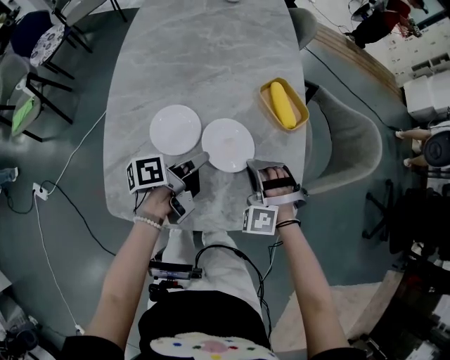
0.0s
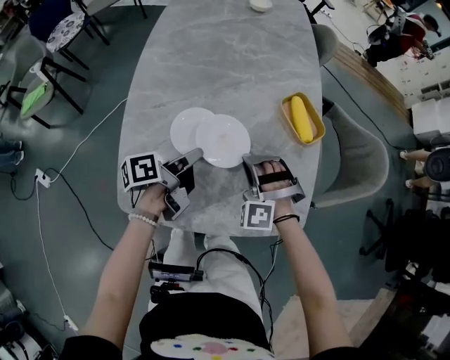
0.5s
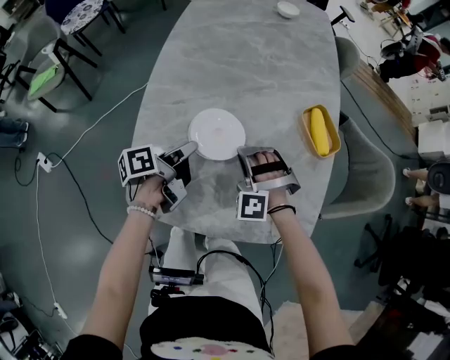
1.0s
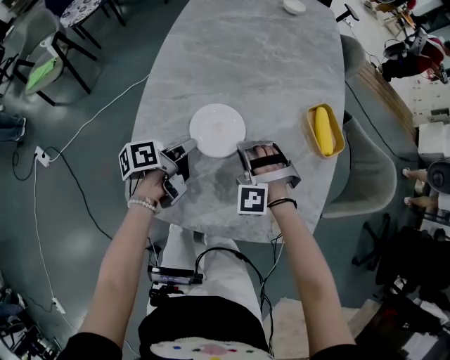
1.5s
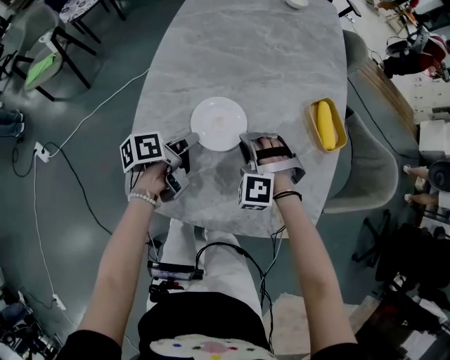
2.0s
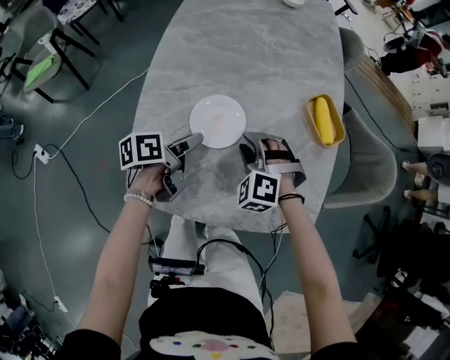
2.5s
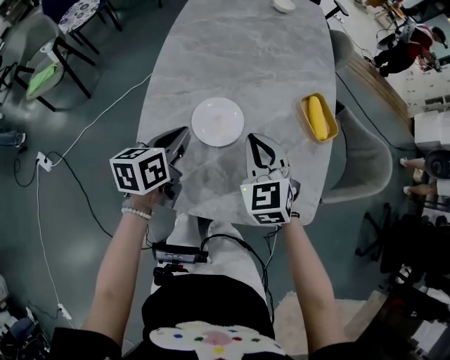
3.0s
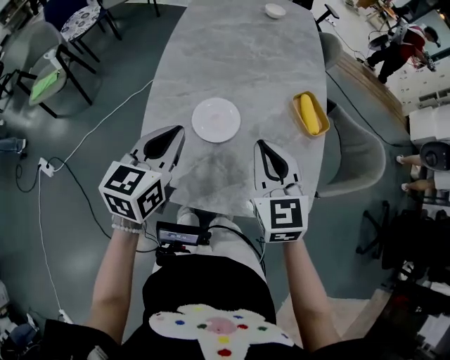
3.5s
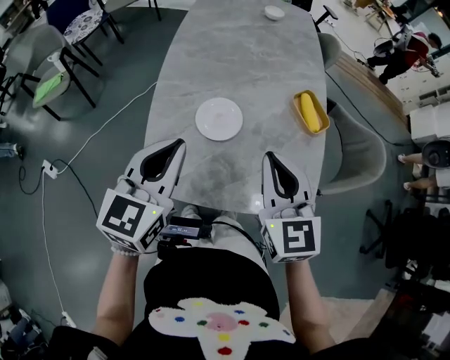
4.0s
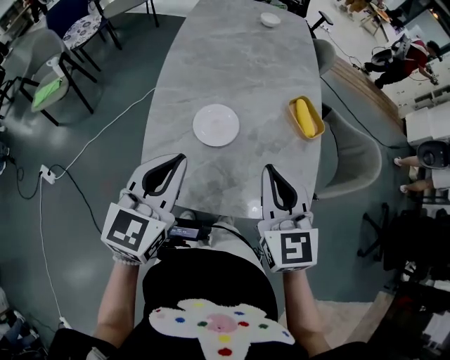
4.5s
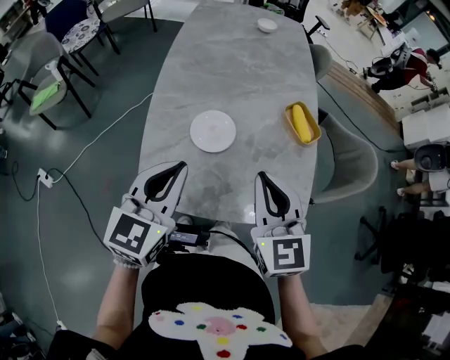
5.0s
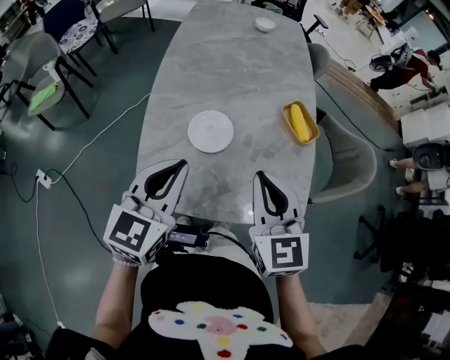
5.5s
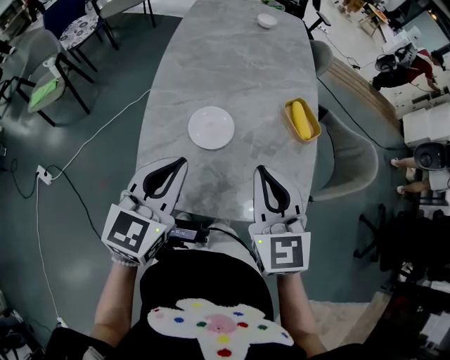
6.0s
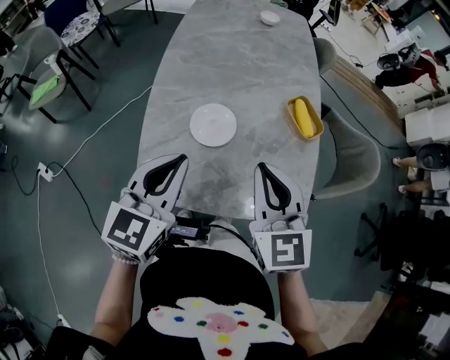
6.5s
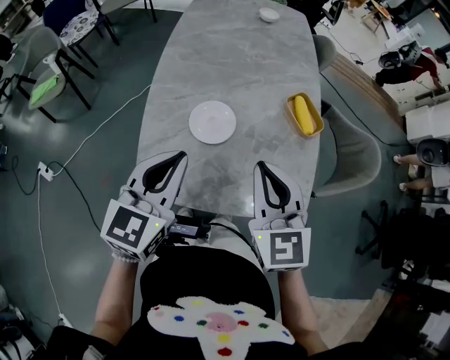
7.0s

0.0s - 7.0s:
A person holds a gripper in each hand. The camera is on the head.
0.0s - 2.0s: Both grippers move to the left, about 15 cm.
2.0s - 3.5s: Both grippers travel together upward, roughly 20 cm. The right gripper twists approximately 70 degrees clockwise, seen from behind, and closes its fingers. Meanwhile the left gripper twists about 60 degrees clockwise, seen from behind, and opens, then closes once more.
3.5s - 5.0s: The grippers both shift backward and upward by roughly 10 cm.
5.0s - 7.0s: There are only small adjustments of the grippers.

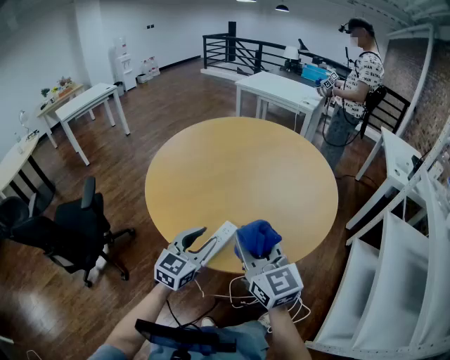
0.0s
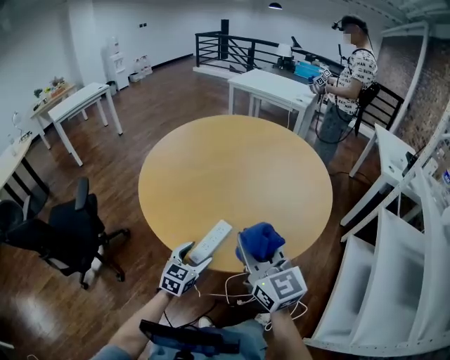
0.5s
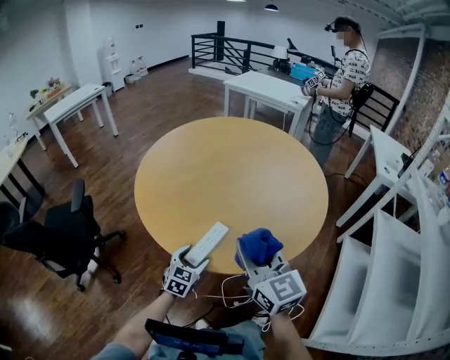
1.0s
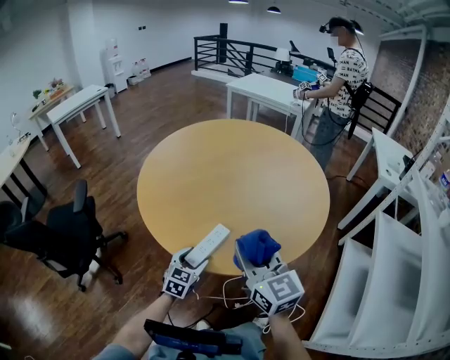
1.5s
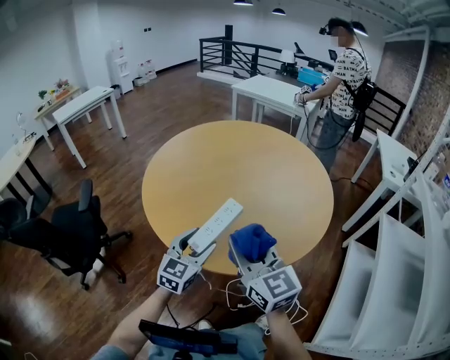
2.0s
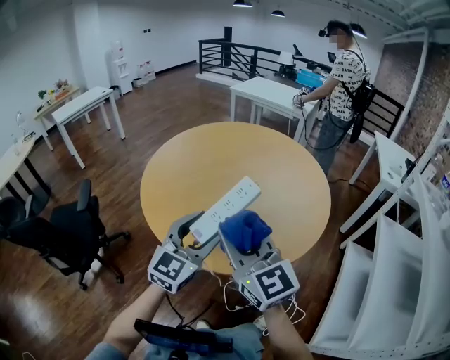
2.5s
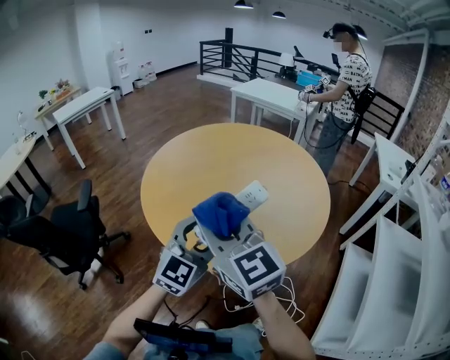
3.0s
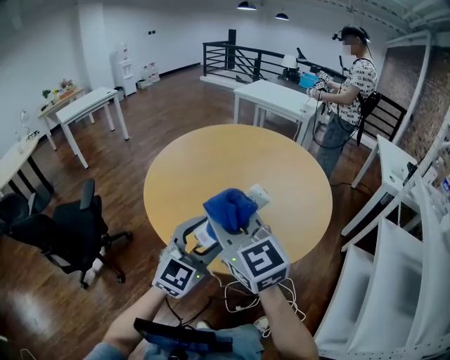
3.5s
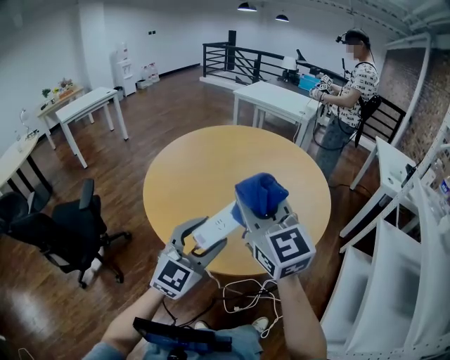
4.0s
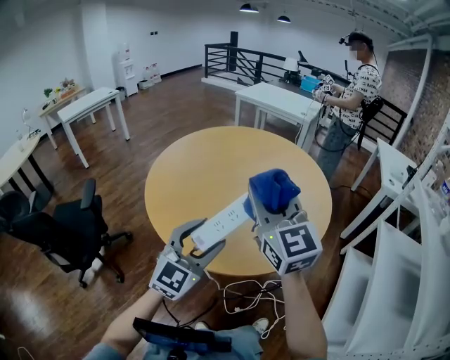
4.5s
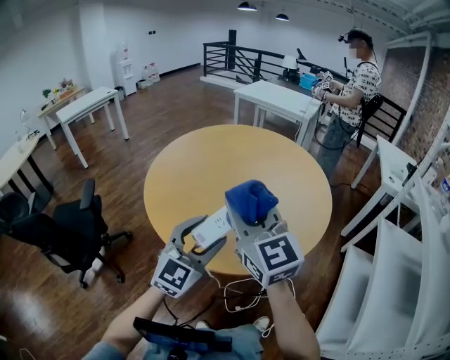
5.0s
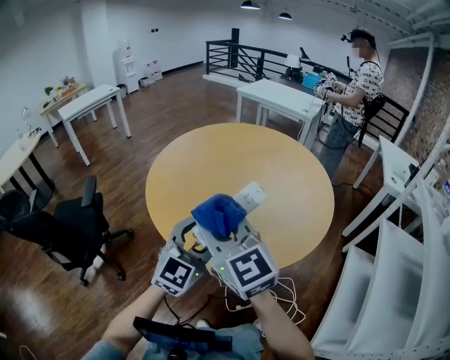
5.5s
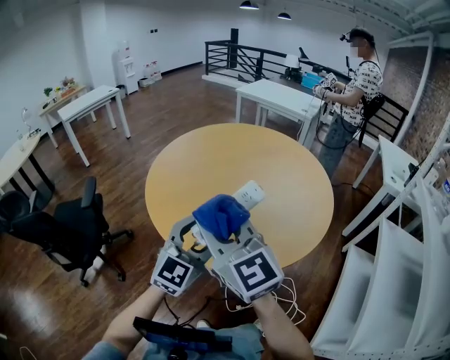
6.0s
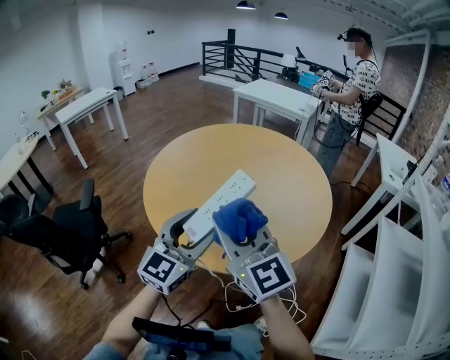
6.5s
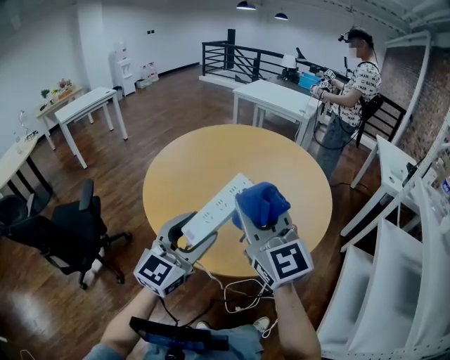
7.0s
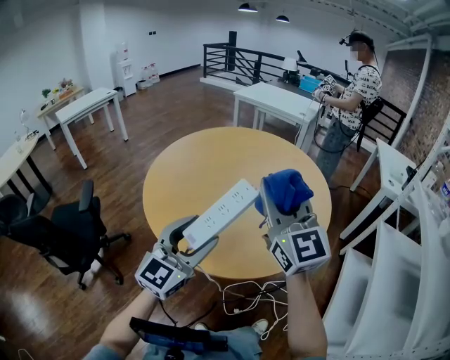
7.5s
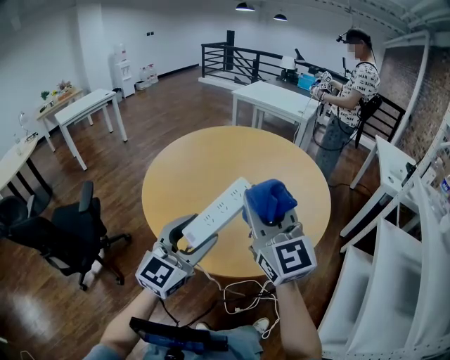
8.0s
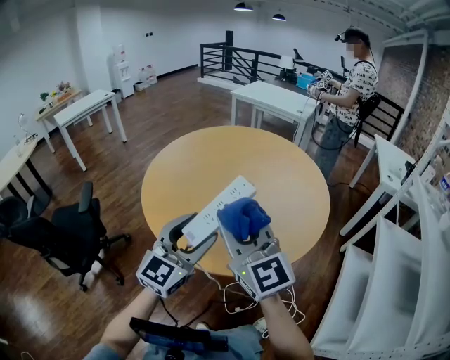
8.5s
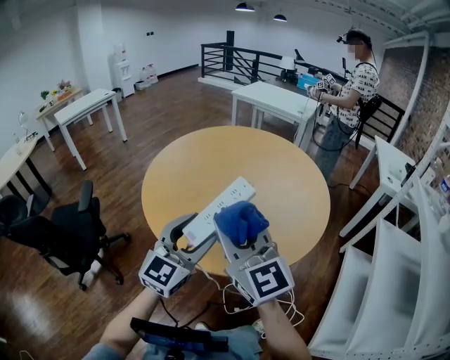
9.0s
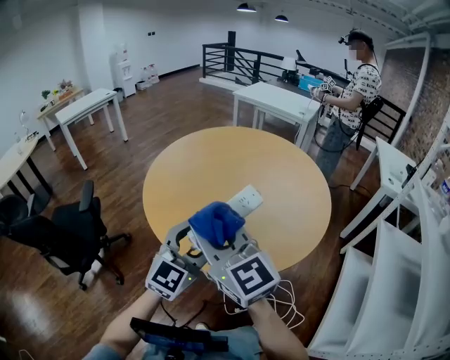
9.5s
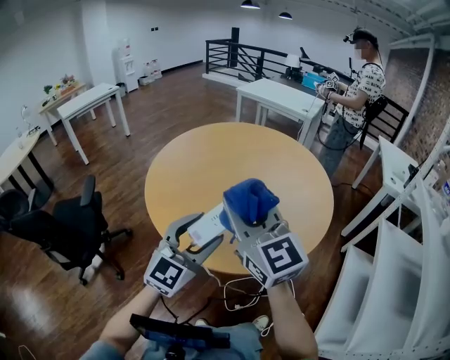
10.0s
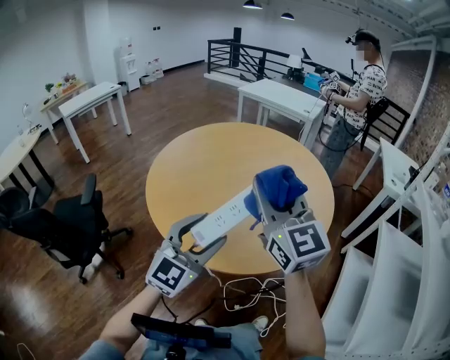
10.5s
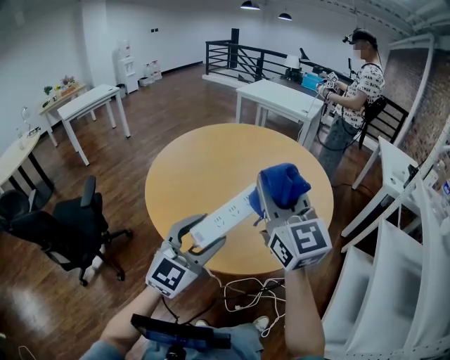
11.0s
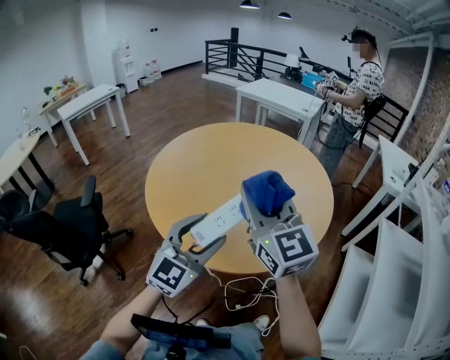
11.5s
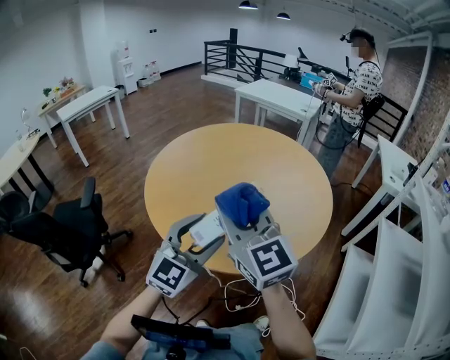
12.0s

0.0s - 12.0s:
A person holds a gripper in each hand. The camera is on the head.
0.0s - 2.0s: The left gripper travels downward and back again, approximately 15 cm each way.
2.0s - 4.0s: The grippers both shift upward by approximately 15 cm.
4.0s - 6.0s: The right gripper travels to the left and backward by approximately 10 cm.
6.0s - 8.0s: The right gripper is displaced to the right and forward by roughly 15 cm.
8.0s - 10.0s: The right gripper shifts about 5 cm to the left.
10.0s - 12.0s: The right gripper travels to the right and back again, some 5 cm each way.

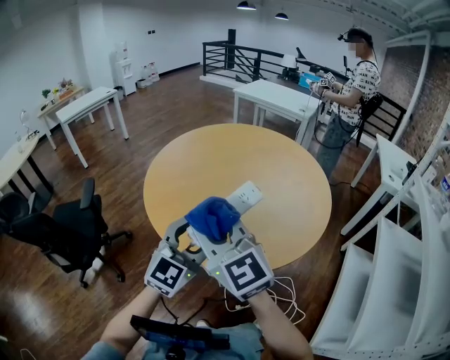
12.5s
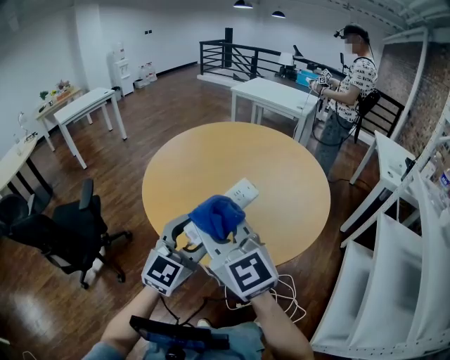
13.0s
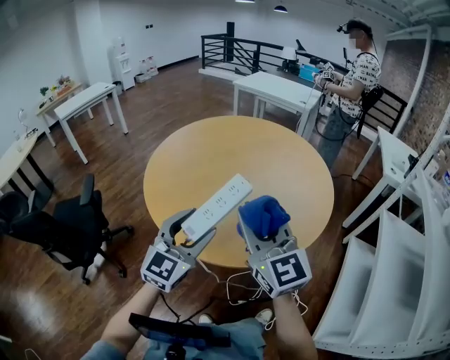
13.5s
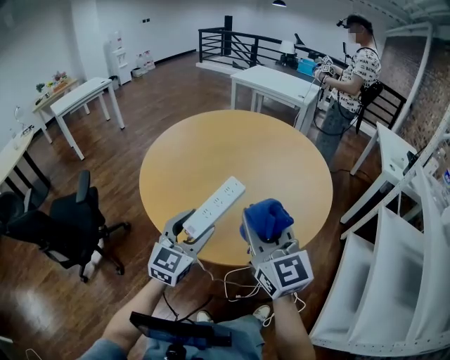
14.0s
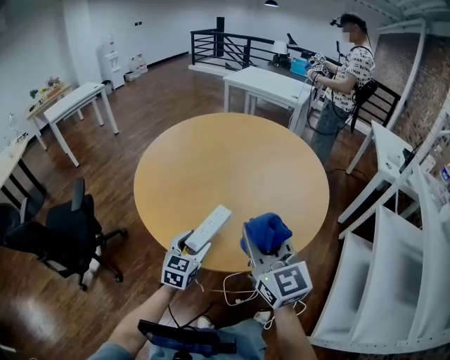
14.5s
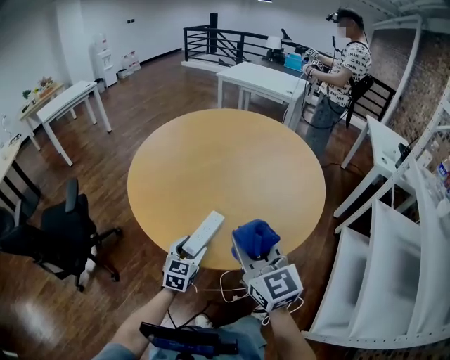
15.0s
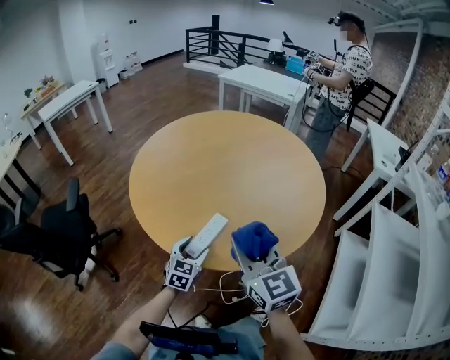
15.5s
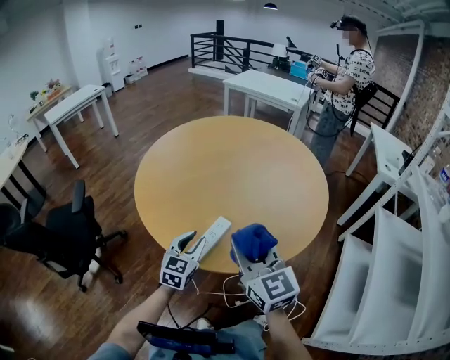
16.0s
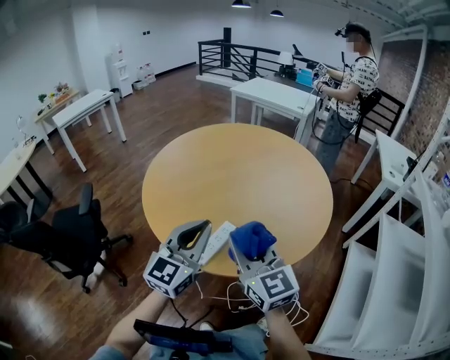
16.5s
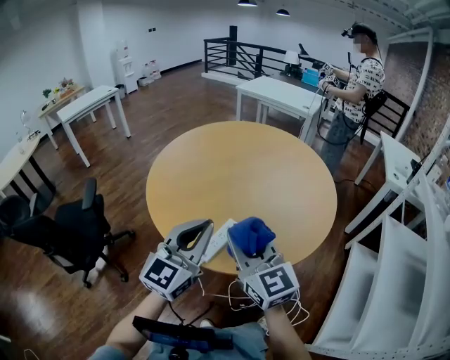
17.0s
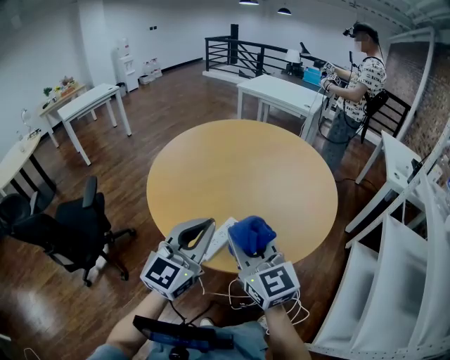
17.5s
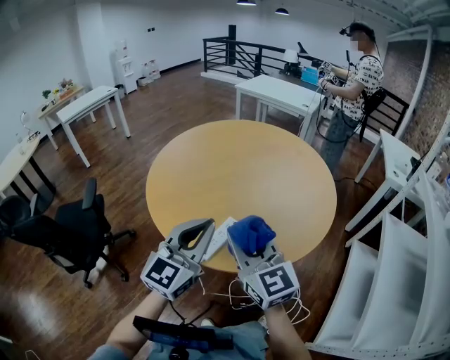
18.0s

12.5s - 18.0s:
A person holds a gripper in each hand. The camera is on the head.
12.5s - 14.5s: The left gripper heads downward, covering roughly 20 cm, and rotates about 30 degrees; the right gripper travels to the right and downward by some 15 cm, and turns by about 20 degrees.
14.5s - 16.0s: The left gripper closes up.
16.0s - 18.0s: The left gripper shifts approximately 20 cm upward, rotates some 20 degrees, and closes.

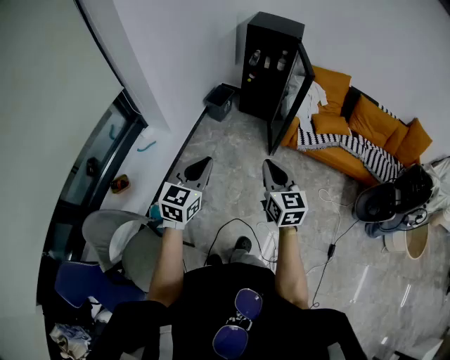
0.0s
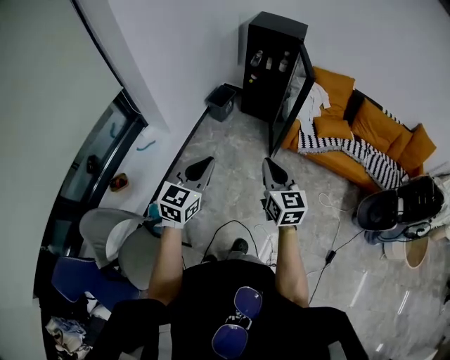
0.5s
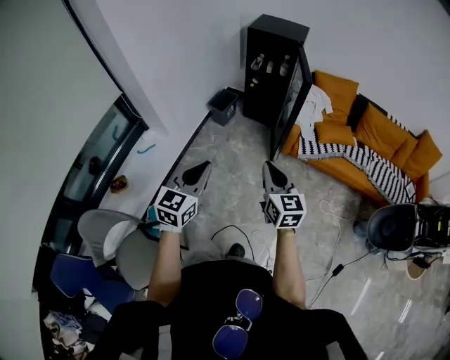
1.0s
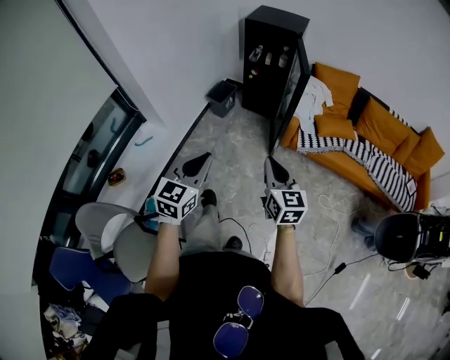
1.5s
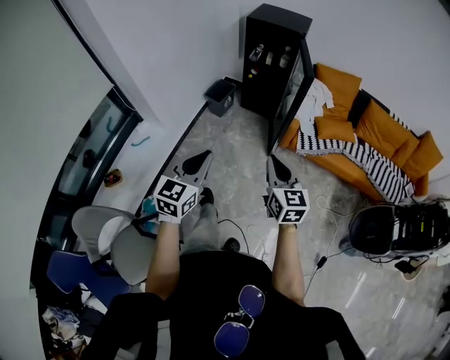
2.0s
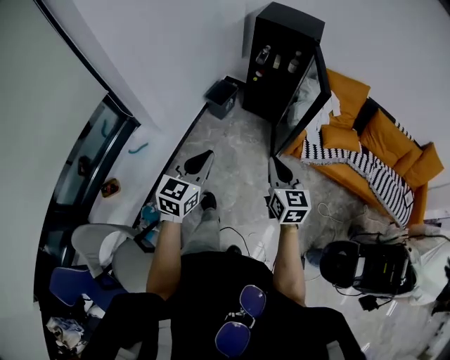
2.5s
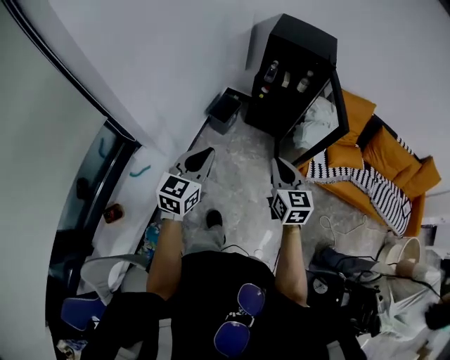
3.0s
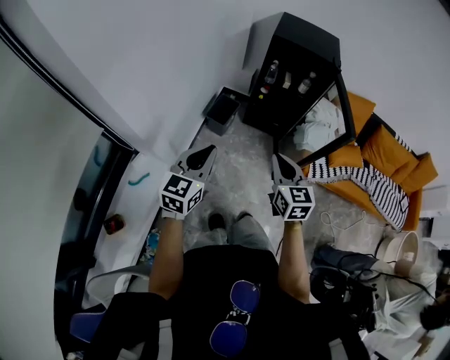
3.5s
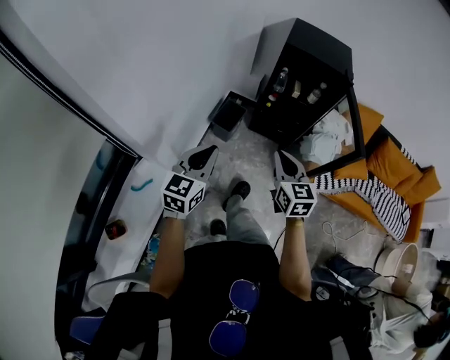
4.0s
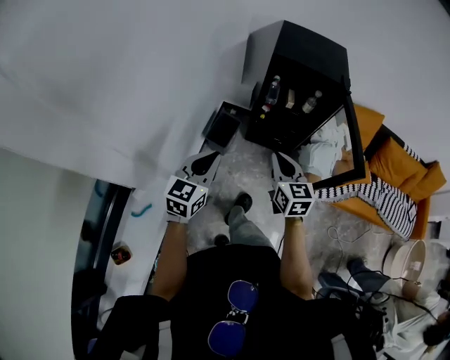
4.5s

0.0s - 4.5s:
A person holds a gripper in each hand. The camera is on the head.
0.0s - 2.0s: The grippers both shift forward and to the right by roughly 15 cm.
2.0s - 4.5s: The pair of grippers is taken forward and to the left, some 50 cm.
